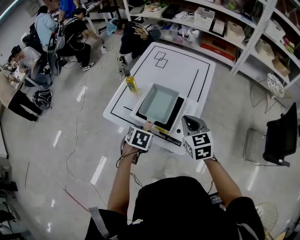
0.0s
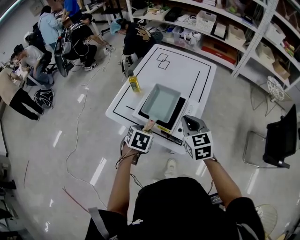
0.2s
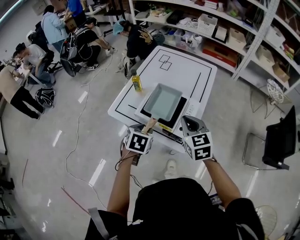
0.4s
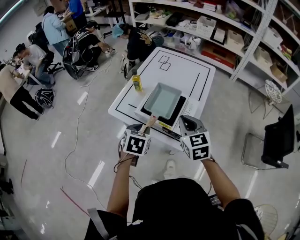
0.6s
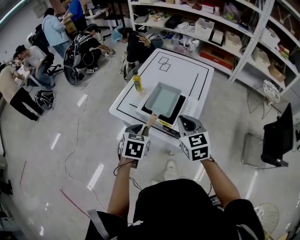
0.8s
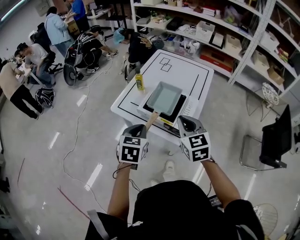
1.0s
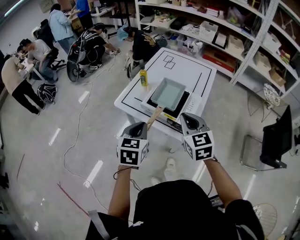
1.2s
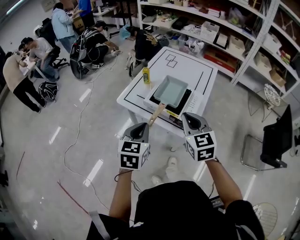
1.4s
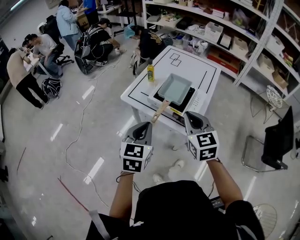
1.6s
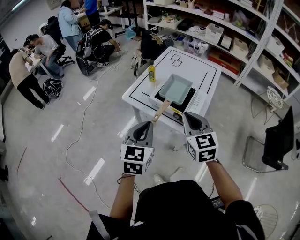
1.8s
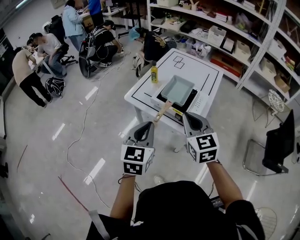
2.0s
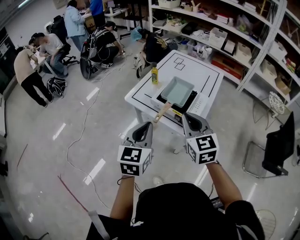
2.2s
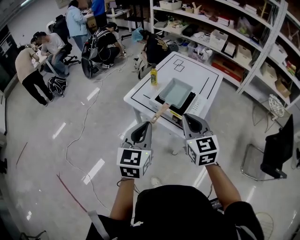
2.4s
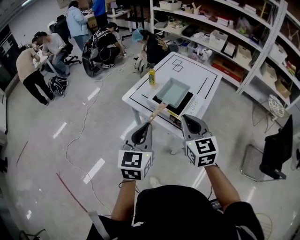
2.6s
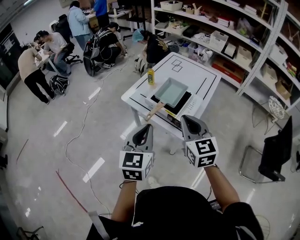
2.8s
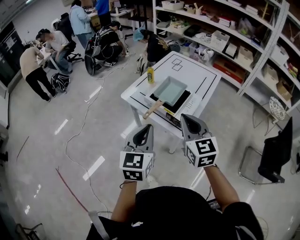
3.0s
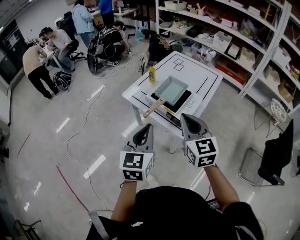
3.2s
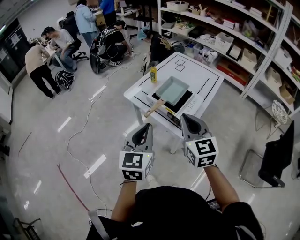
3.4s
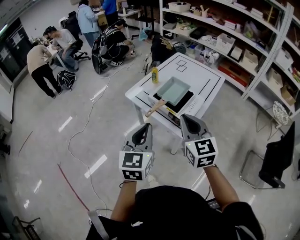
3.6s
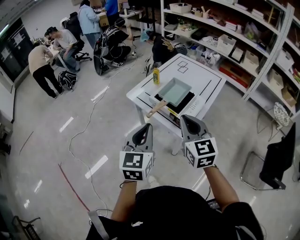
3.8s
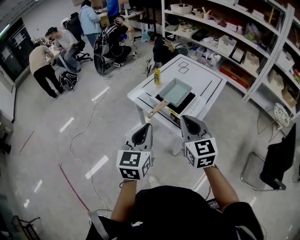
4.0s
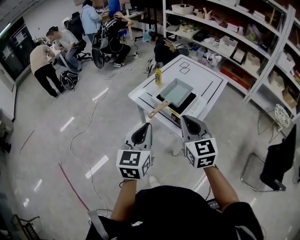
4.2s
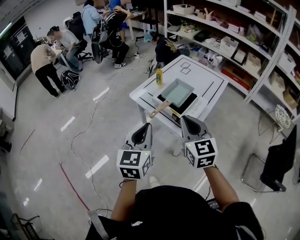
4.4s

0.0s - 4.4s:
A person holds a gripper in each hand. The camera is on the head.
0.0s - 1.4s: The right gripper travels backward, upward and to the left by roughly 20 cm, while the left gripper moves upward and backward, some 25 cm, points its fingers about 40 degrees further upward, and closes.
1.4s - 3.0s: The left gripper shifts roughly 15 cm backward, upward and to the right; the right gripper travels backward by roughly 5 cm.
3.0s - 4.4s: The grippers make only small movements.

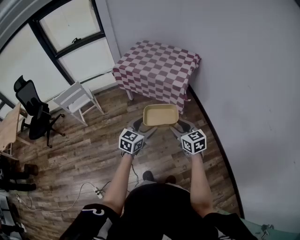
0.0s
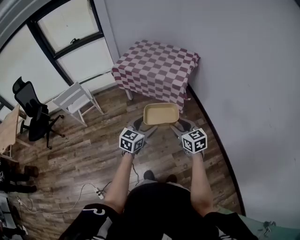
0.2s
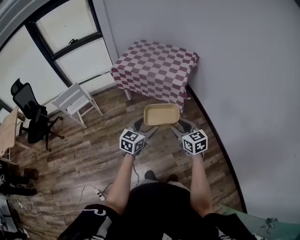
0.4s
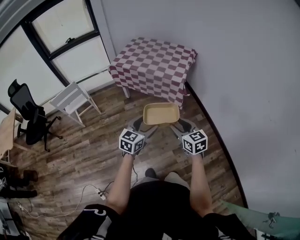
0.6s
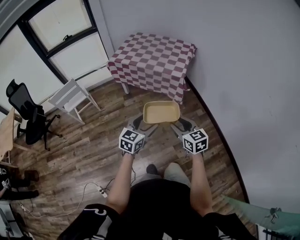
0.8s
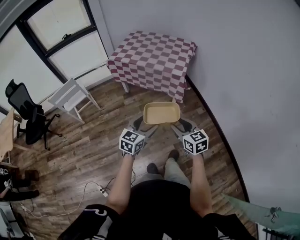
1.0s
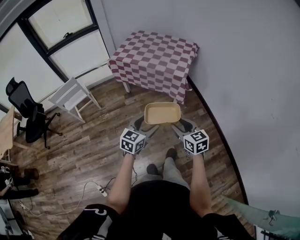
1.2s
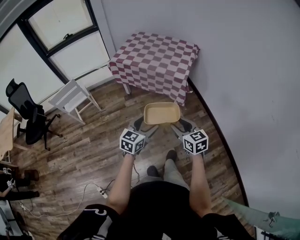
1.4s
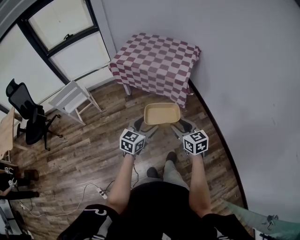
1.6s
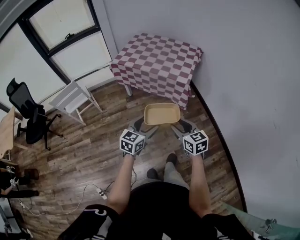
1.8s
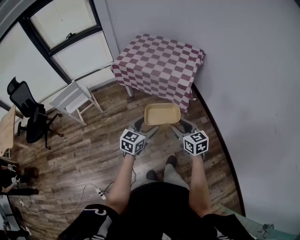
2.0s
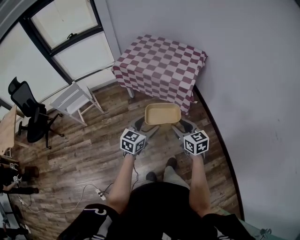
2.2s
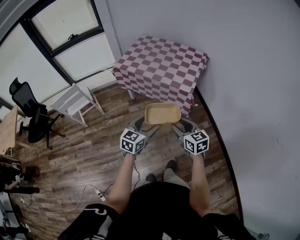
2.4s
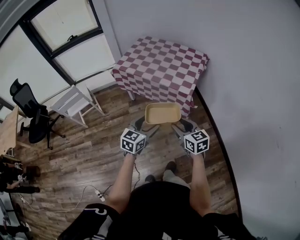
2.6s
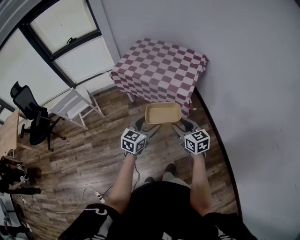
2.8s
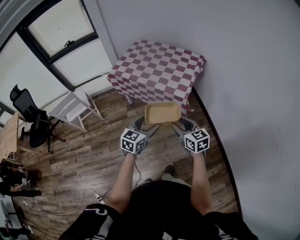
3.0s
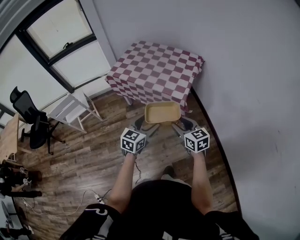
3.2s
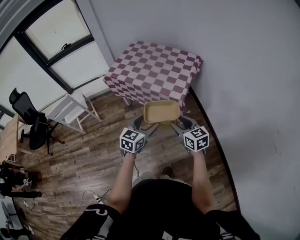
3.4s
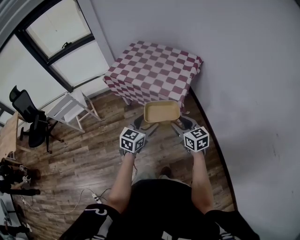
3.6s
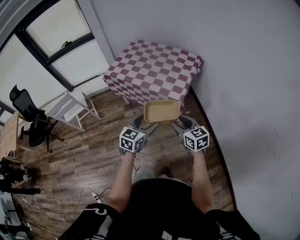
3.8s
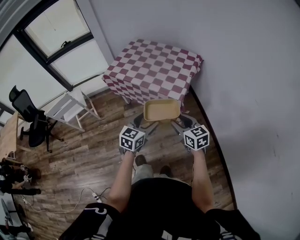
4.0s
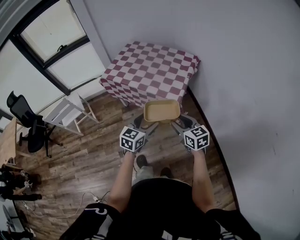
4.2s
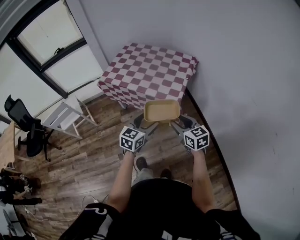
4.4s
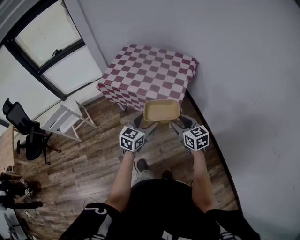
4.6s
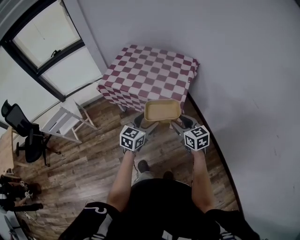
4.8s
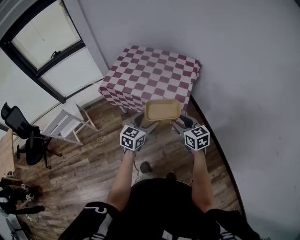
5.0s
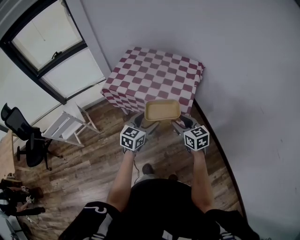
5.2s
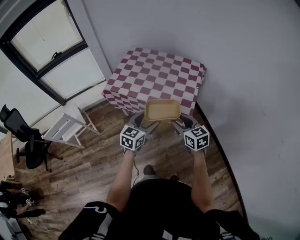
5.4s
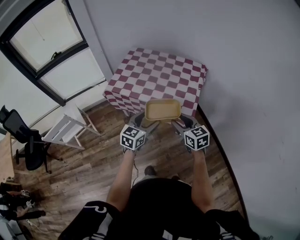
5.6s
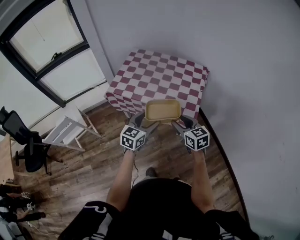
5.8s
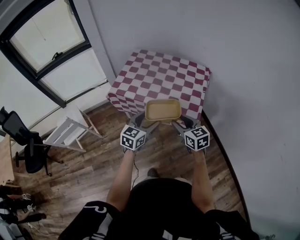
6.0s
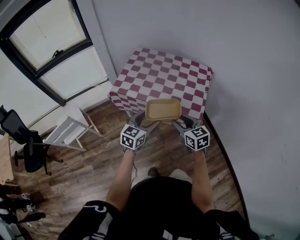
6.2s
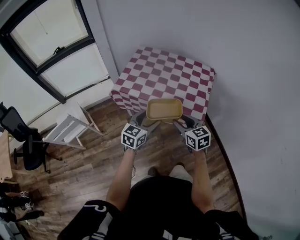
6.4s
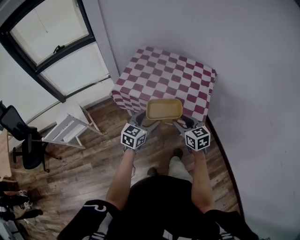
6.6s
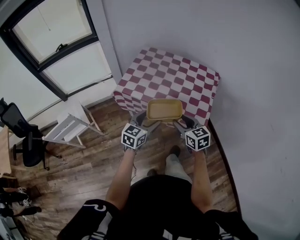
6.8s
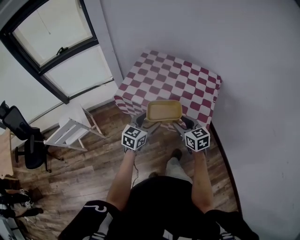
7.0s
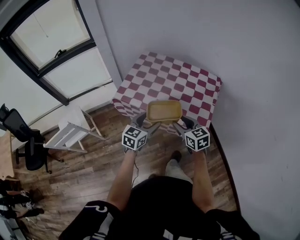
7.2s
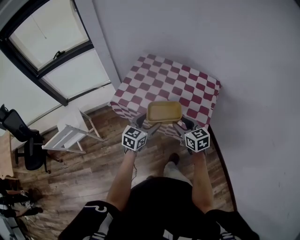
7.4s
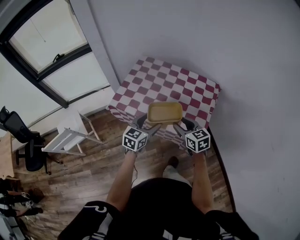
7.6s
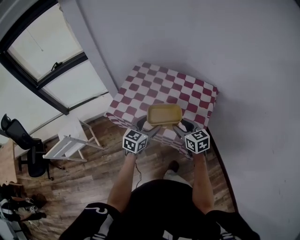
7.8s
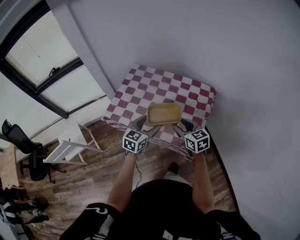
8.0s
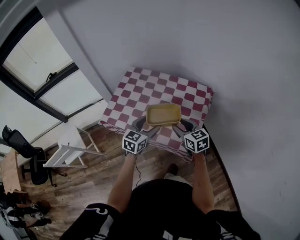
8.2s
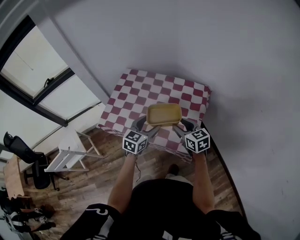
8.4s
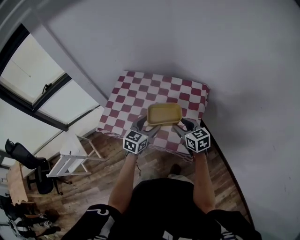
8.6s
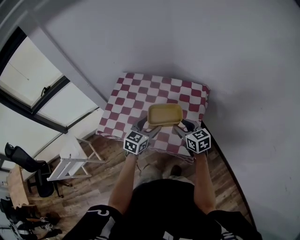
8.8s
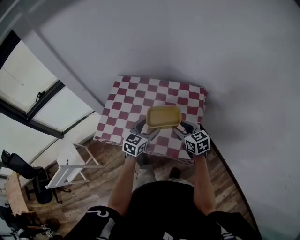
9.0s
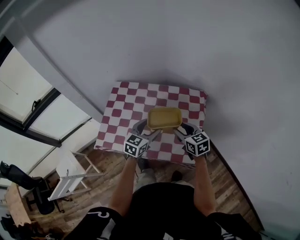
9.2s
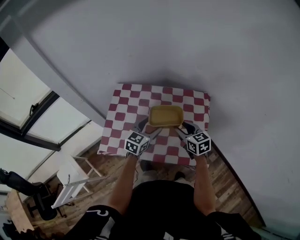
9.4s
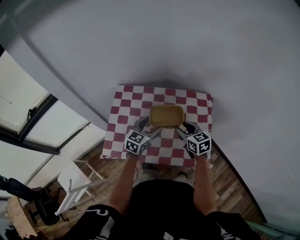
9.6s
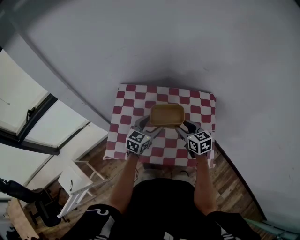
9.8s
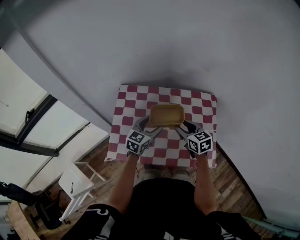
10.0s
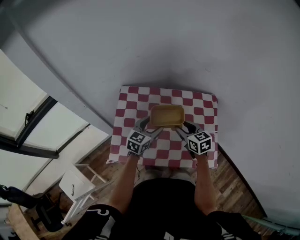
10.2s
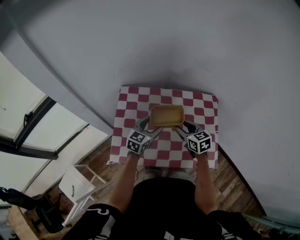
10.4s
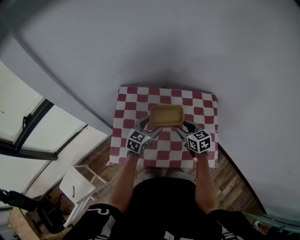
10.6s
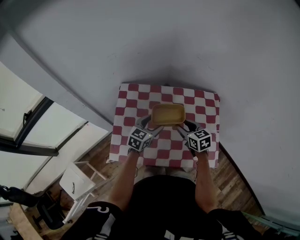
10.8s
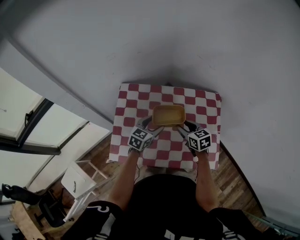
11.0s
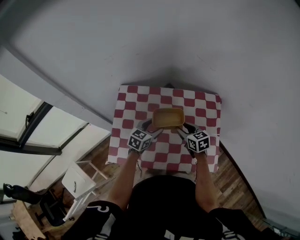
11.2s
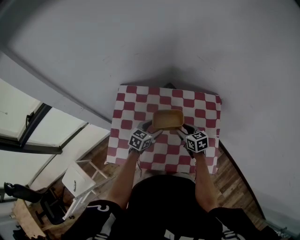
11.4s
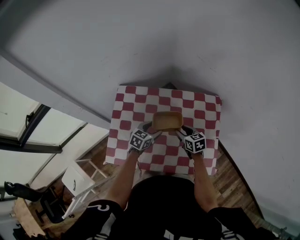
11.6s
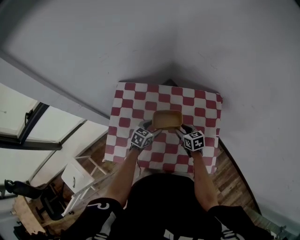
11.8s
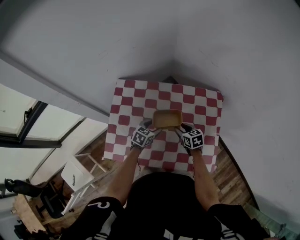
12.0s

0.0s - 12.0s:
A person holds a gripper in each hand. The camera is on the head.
0.0s - 1.6s: The two grippers go approximately 5 cm to the left.
1.6s - 3.0s: Both grippers travel together forward and to the right, about 20 cm.
3.0s - 4.4s: Both grippers move forward and to the right, about 10 cm.
4.4s - 6.0s: Both grippers travel together to the left and forward, roughly 25 cm.
6.0s - 7.6s: The two grippers go some 15 cm forward.
7.6s - 9.0s: The two grippers go roughly 20 cm forward and to the right.
9.0s - 10.4s: Both grippers move to the left and forward, about 25 cm.
10.4s - 12.0s: The two grippers go some 15 cm downward. The left gripper turns by approximately 20 degrees.

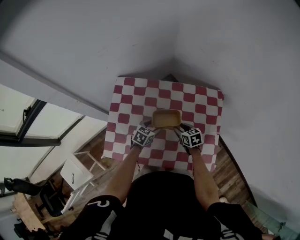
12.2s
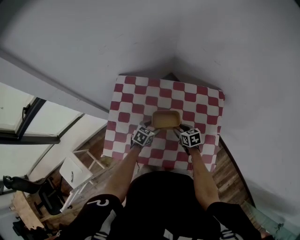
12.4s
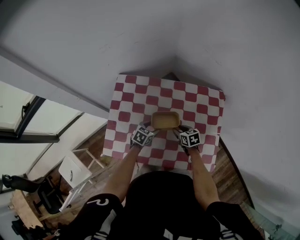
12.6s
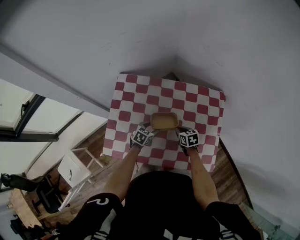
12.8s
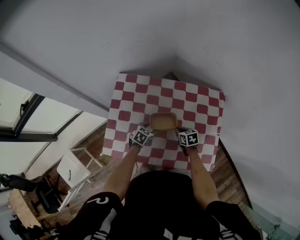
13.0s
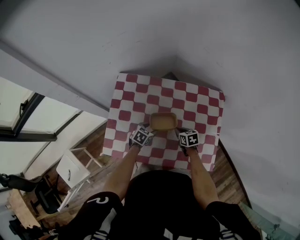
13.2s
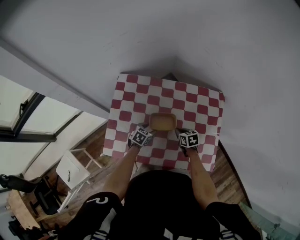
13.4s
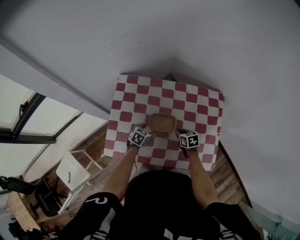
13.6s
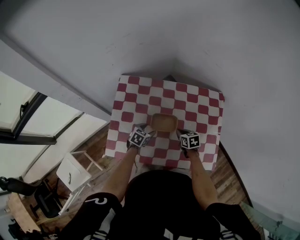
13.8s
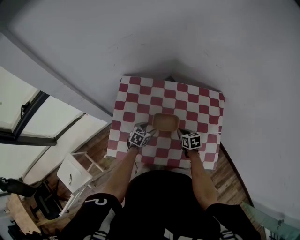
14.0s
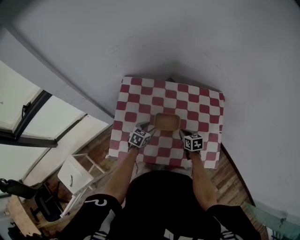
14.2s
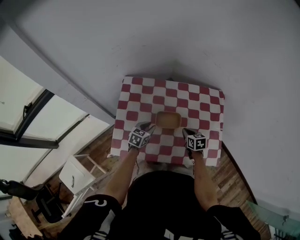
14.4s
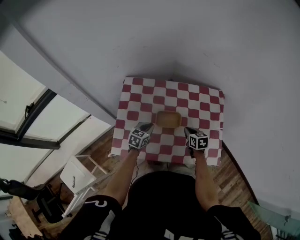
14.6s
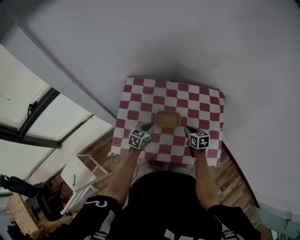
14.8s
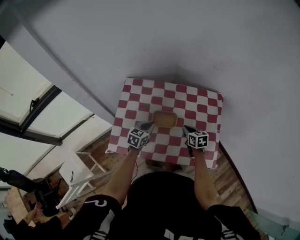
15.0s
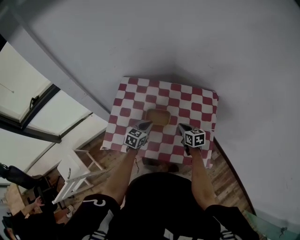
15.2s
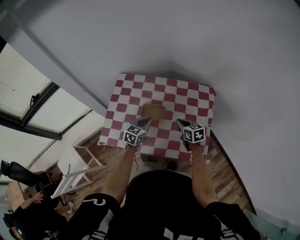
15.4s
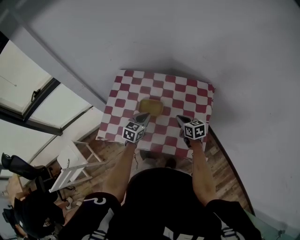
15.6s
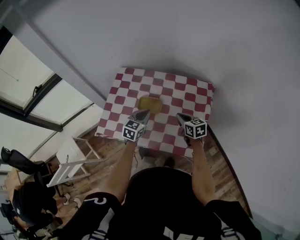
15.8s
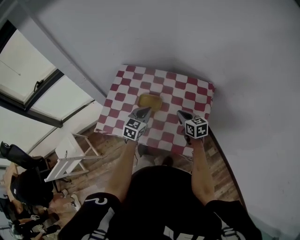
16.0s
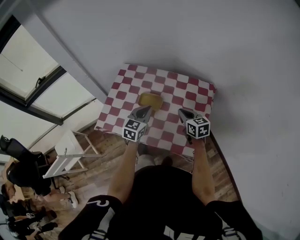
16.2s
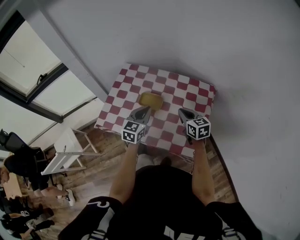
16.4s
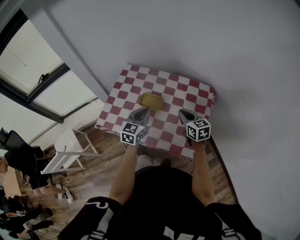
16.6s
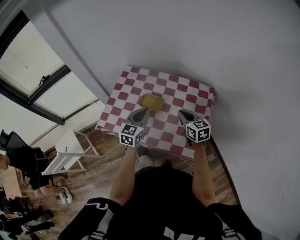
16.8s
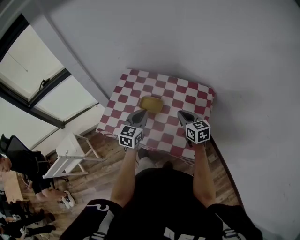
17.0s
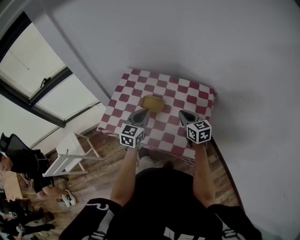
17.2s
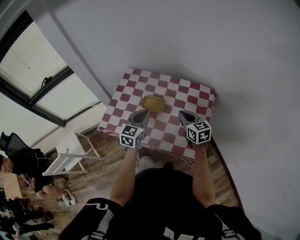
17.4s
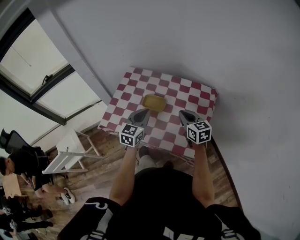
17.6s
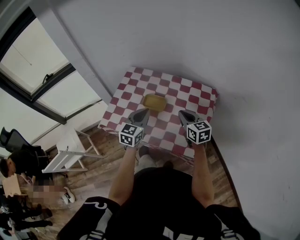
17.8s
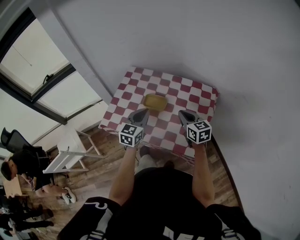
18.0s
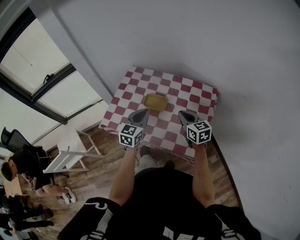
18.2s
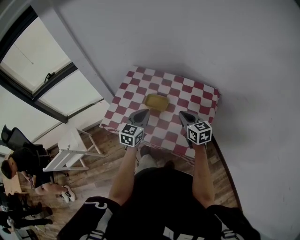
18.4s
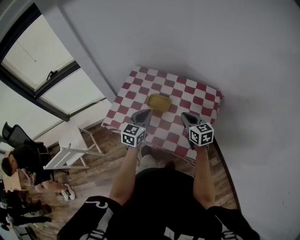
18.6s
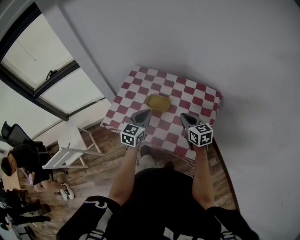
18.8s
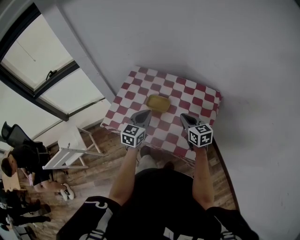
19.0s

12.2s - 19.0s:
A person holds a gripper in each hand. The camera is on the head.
12.2s - 13.6s: The right gripper closes its fingers, while the left gripper moves downward and to the left, approximately 10 cm.
13.6s - 15.0s: The left gripper travels upward by roughly 15 cm, turns by roughly 20 degrees, and closes its fingers. Meanwhile the right gripper goes about 10 cm upward.
15.0s - 16.2s: The right gripper is displaced upward and to the right by about 15 cm. The left gripper goes some 15 cm to the right, upward and backward.
16.2s - 17.6s: The right gripper ends up about 5 cm from where it was; the left gripper changes place by about 5 cm.
17.6s - 19.0s: There are only small adjustments of the grippers.
